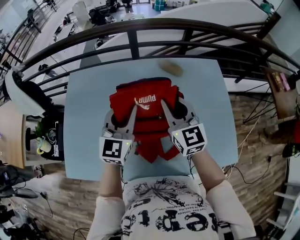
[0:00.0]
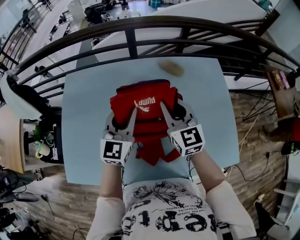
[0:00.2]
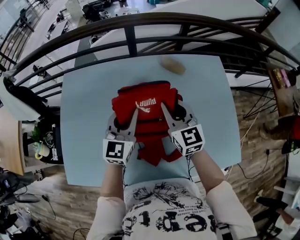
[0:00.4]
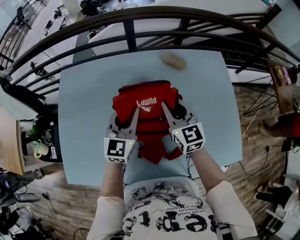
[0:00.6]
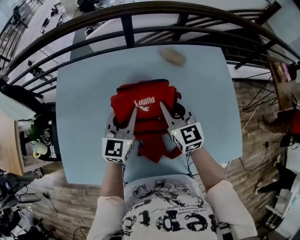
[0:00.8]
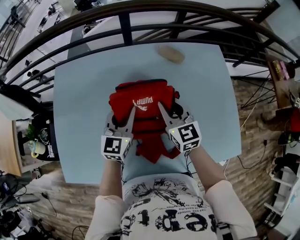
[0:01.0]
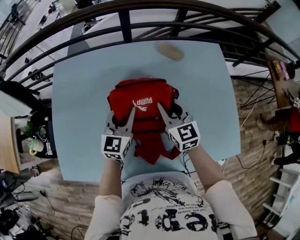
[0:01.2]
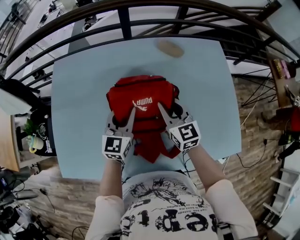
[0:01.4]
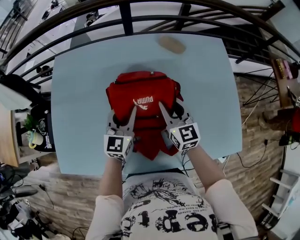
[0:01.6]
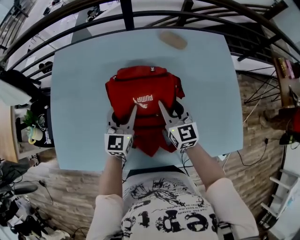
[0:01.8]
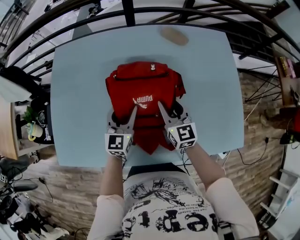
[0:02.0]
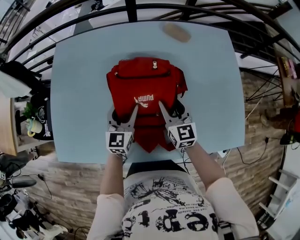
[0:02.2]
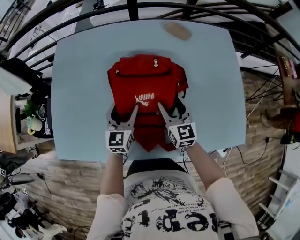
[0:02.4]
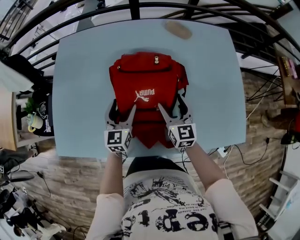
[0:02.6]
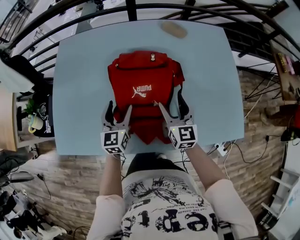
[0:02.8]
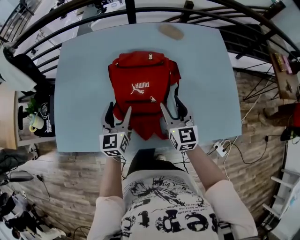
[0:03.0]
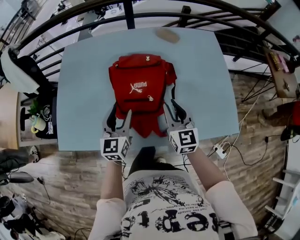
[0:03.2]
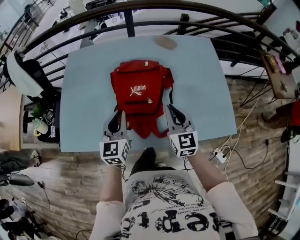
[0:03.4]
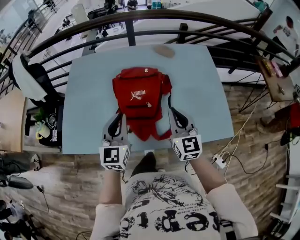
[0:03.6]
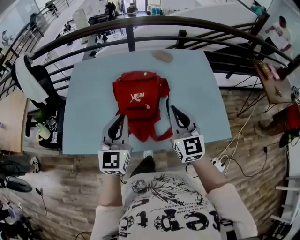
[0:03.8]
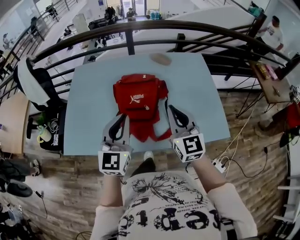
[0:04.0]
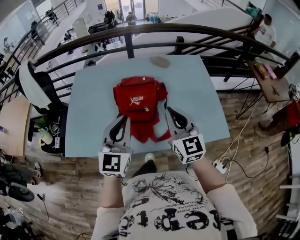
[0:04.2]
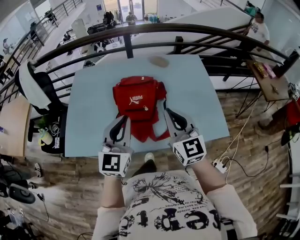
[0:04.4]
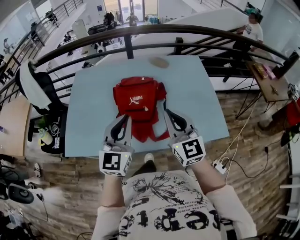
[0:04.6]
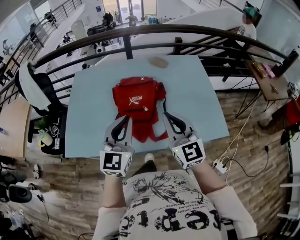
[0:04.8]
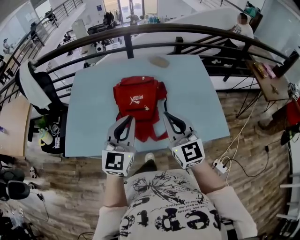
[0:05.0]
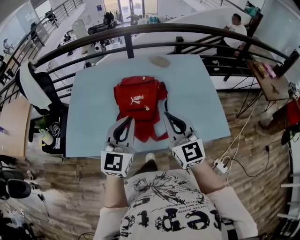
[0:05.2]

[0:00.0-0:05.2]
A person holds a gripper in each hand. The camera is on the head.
0:00.0 to 0:01.8: The grippers both shift downward by some 20 cm.
0:01.8 to 0:03.4: The two grippers go some 25 cm backward and upward. The right gripper opens, then closes once more; the left gripper closes its fingers.
0:03.4 to 0:05.2: Both grippers travel together upward and backward, some 20 cm. The left gripper changes its angle by some 20 degrees.

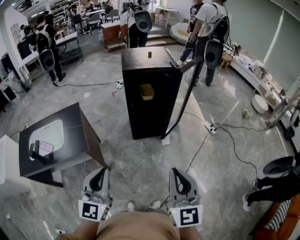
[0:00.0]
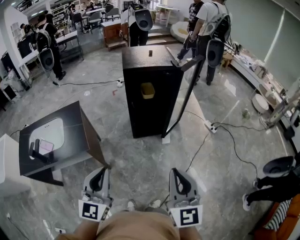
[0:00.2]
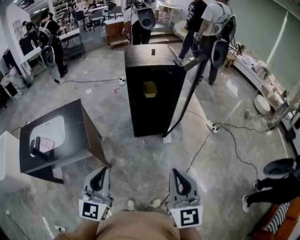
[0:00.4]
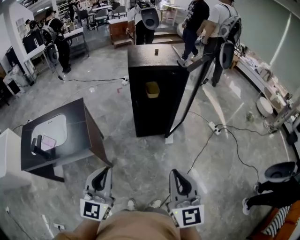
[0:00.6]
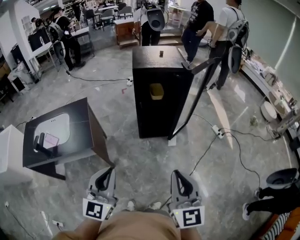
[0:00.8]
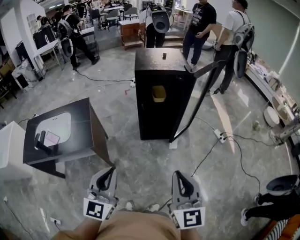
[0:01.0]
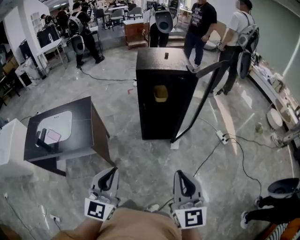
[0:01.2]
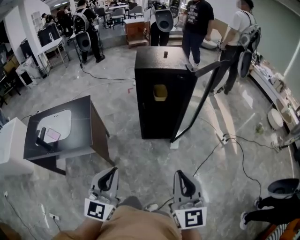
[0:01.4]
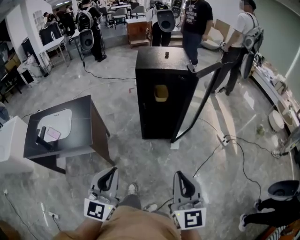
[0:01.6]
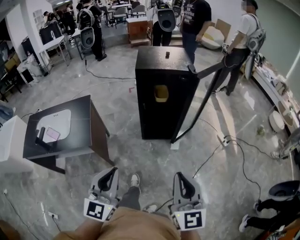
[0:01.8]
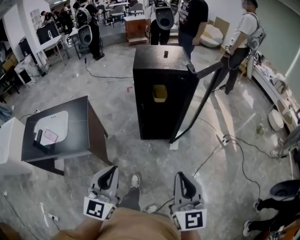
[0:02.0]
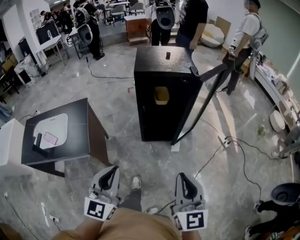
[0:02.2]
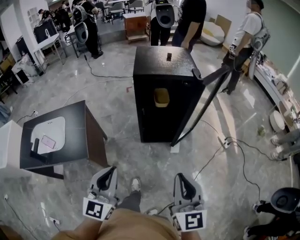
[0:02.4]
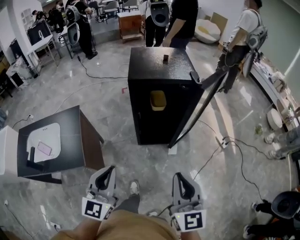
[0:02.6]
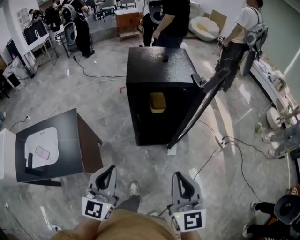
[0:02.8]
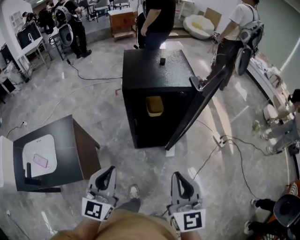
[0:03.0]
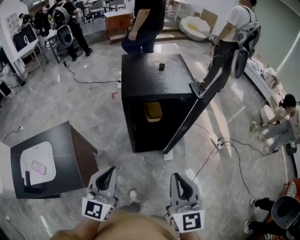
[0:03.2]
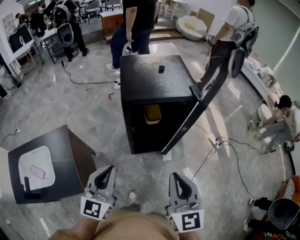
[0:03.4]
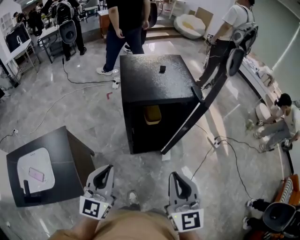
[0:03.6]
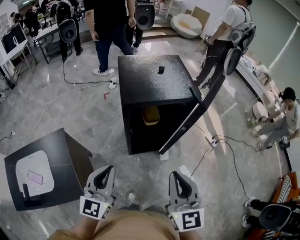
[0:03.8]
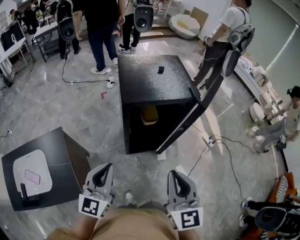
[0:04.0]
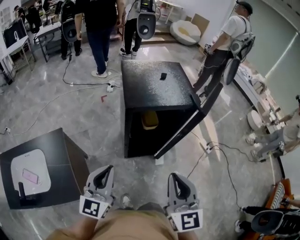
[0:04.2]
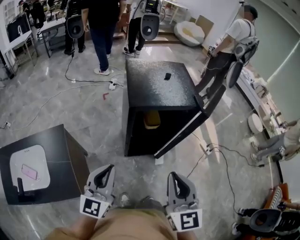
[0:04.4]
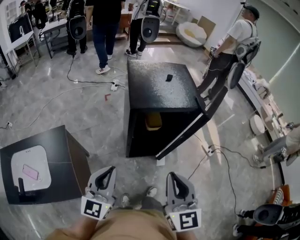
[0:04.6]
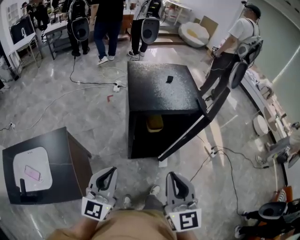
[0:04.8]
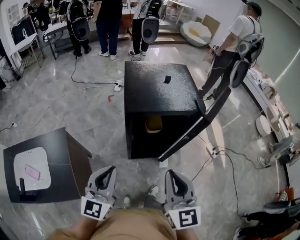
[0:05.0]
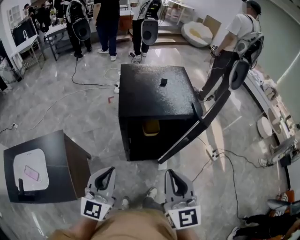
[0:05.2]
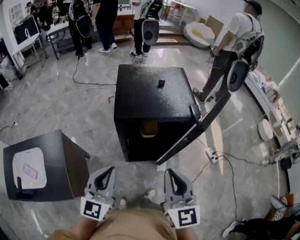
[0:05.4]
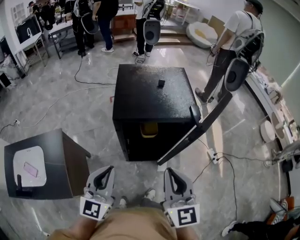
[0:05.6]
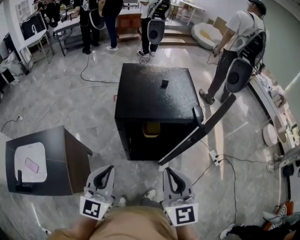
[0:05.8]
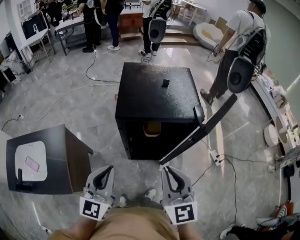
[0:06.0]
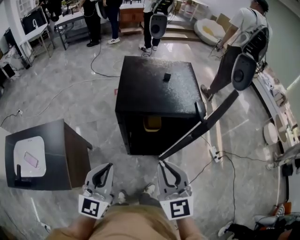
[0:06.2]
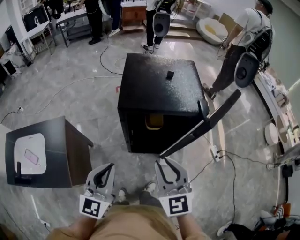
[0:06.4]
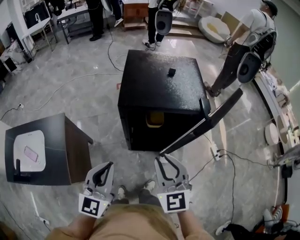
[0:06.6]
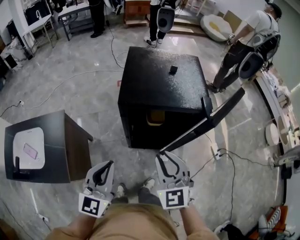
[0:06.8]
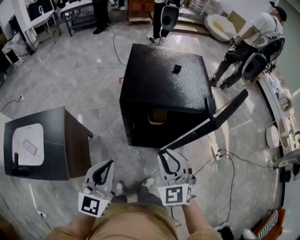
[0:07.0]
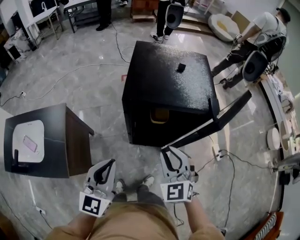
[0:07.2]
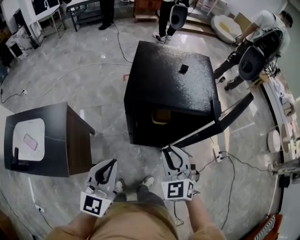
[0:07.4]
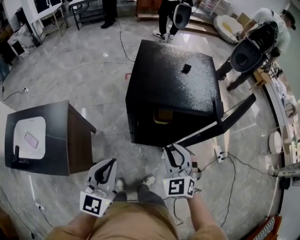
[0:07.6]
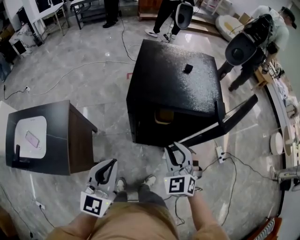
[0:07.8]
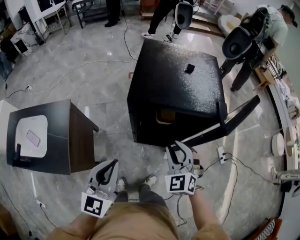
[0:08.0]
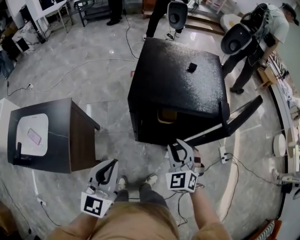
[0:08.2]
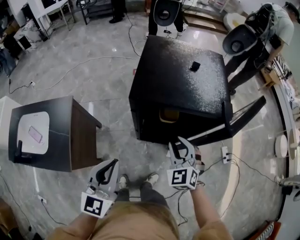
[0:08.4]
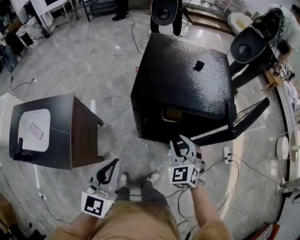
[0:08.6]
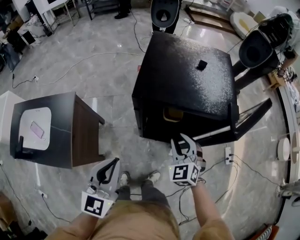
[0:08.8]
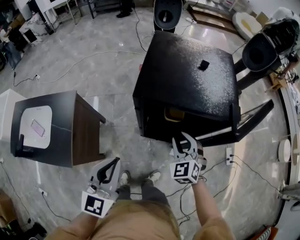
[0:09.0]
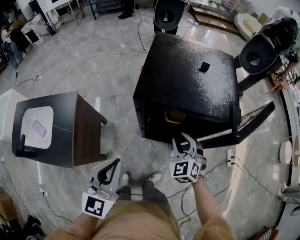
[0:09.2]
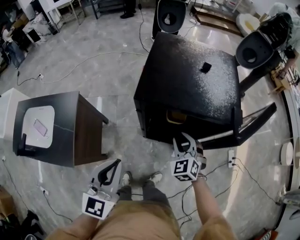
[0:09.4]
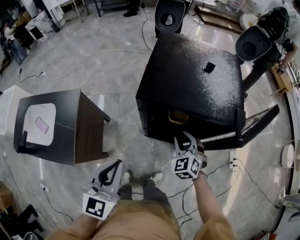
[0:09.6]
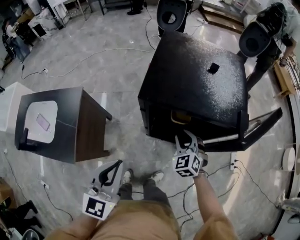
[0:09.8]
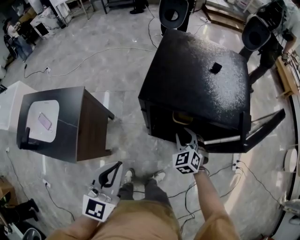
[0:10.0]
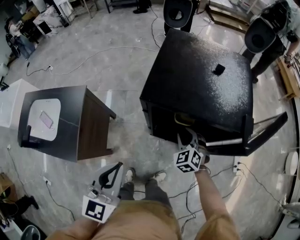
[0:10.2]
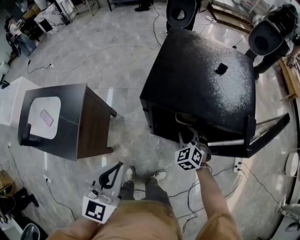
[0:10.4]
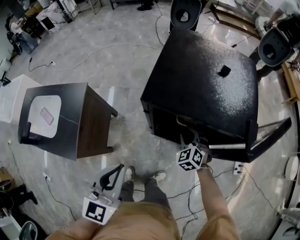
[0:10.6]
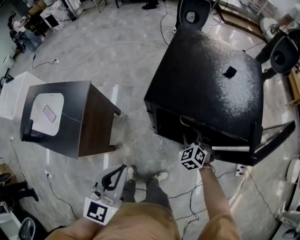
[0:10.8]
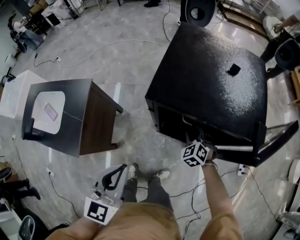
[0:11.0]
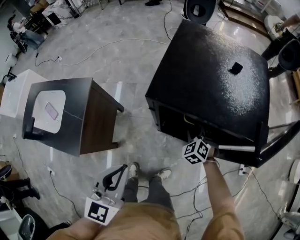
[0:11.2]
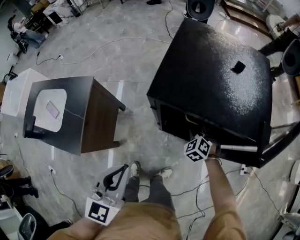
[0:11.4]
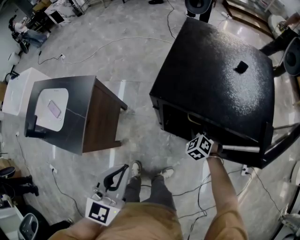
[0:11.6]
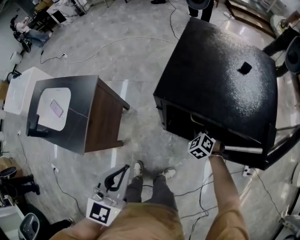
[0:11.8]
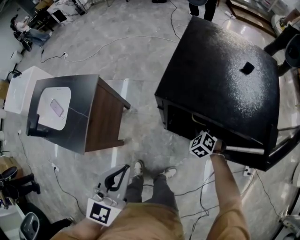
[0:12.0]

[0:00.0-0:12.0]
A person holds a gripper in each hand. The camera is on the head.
0:00.0 to 0:01.6: The left gripper heads to the right, covering roughly 5 cm, while the right gripper ends up approximately 5 cm from where it was.
0:01.6 to 0:03.0: The grippers both shift forward by about 25 cm.
0:03.0 to 0:04.4: The left gripper moves forward and to the left, roughly 10 cm. Meanwhile the right gripper goes approximately 10 cm to the left and forward.
0:04.4 to 0:06.0: The left gripper is displaced to the right by some 10 cm. Meanwhile the right gripper is displaced forward and to the right by approximately 10 cm.
0:06.0 to 0:07.6: The right gripper shifts some 15 cm downward and forward, turns by about 40 degrees, and opens up.
0:07.6 to 0:09.0: The right gripper travels downward and forward by some 10 cm.
0:09.0 to 0:10.4: The right gripper moves downward and forward, approximately 10 cm.
0:10.4 to 0:12.0: The right gripper is displaced downward by some 10 cm.

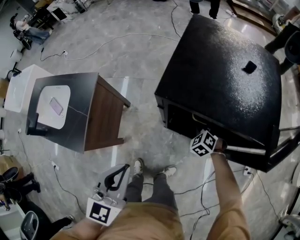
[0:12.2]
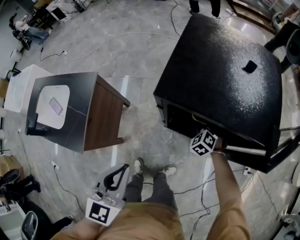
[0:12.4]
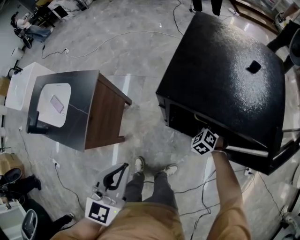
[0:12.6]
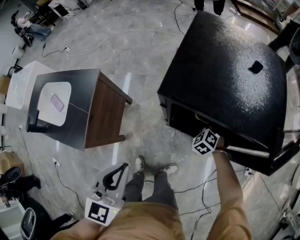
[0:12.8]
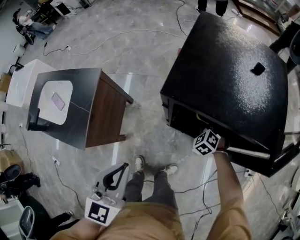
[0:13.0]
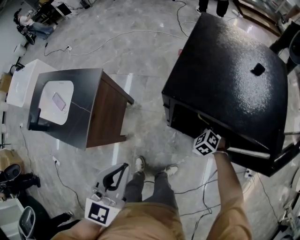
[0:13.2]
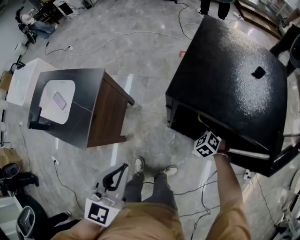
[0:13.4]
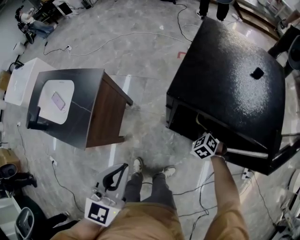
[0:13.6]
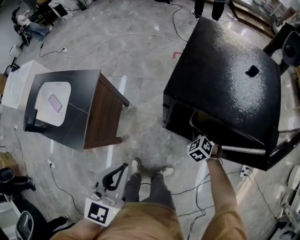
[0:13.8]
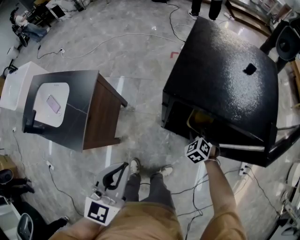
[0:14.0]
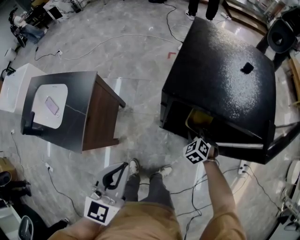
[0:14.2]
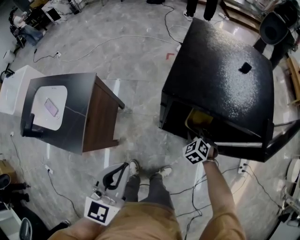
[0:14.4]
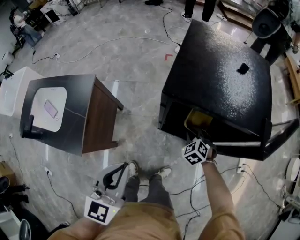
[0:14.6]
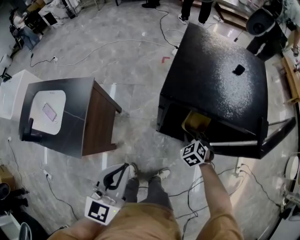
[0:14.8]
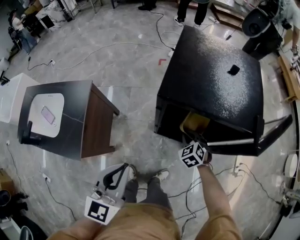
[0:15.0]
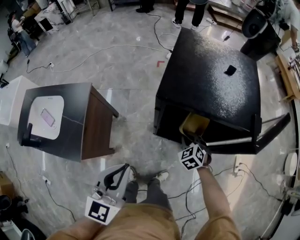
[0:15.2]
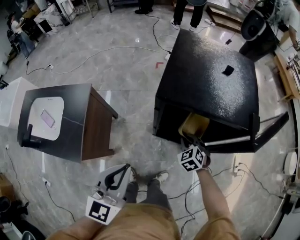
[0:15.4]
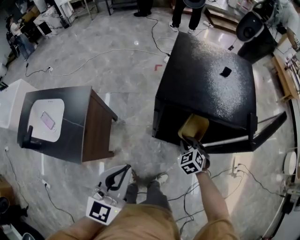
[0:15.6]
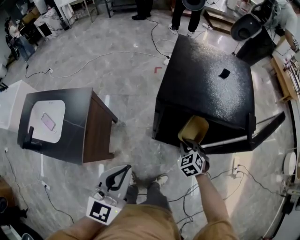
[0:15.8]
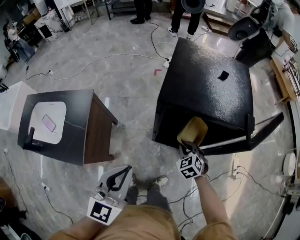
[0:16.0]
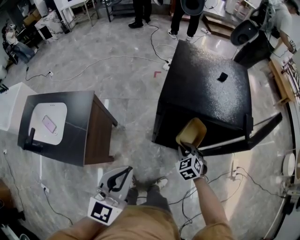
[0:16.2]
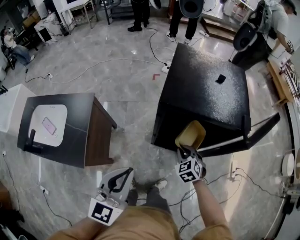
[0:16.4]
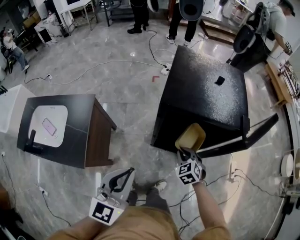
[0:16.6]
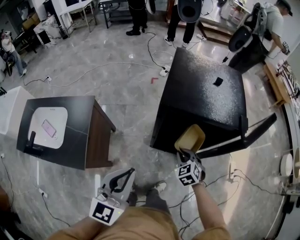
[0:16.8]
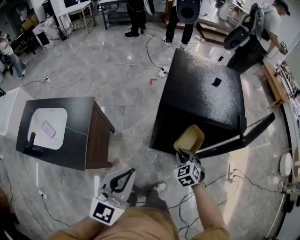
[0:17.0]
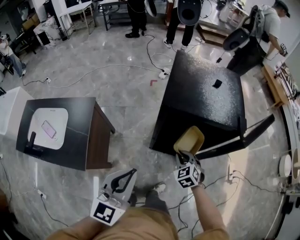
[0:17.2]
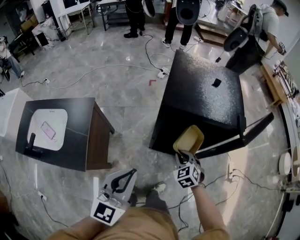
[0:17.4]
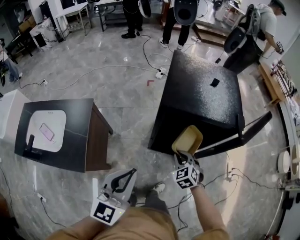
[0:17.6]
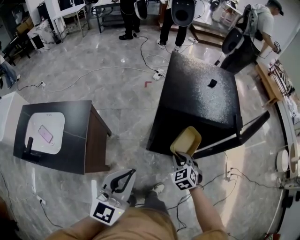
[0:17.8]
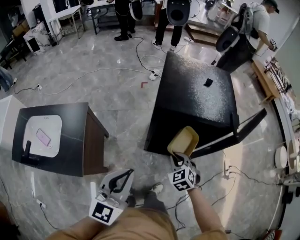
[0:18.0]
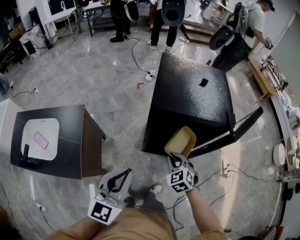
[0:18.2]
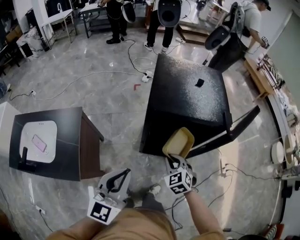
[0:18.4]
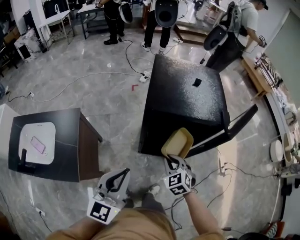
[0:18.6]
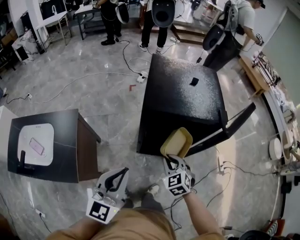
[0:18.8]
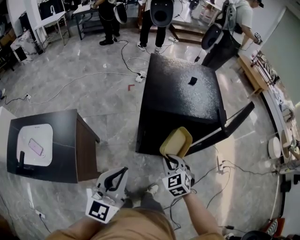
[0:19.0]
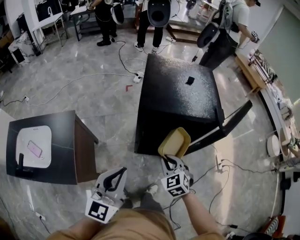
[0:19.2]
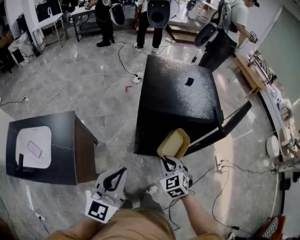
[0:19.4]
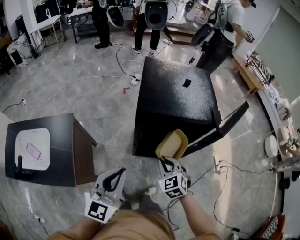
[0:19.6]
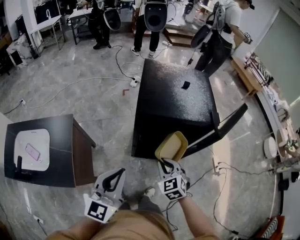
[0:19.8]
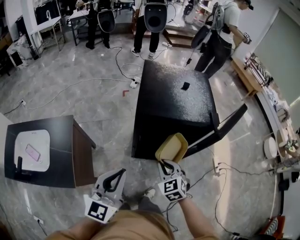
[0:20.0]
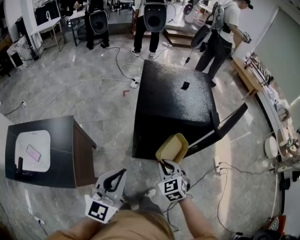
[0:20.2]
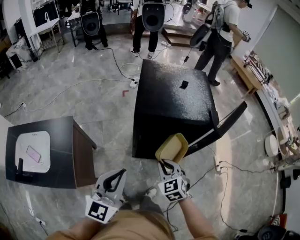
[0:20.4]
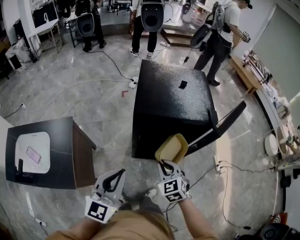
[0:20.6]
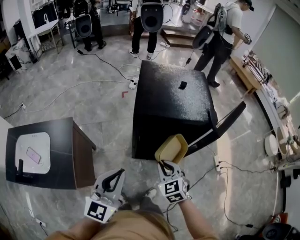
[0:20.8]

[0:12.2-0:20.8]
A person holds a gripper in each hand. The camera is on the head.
0:12.2 to 0:13.6: The right gripper closes up.
0:13.6 to 0:15.0: The right gripper heads backward, covering some 5 cm.
0:15.0 to 0:16.6: The right gripper travels backward and upward by some 10 cm.
0:16.6 to 0:18.0: The right gripper moves about 5 cm.
0:18.0 to 0:19.4: The right gripper ends up approximately 5 cm from where it was.
0:19.4 to 0:20.8: There are only small adjustments of the grippers.
